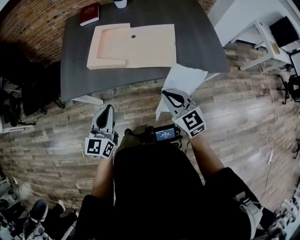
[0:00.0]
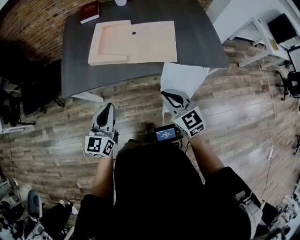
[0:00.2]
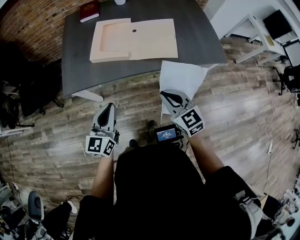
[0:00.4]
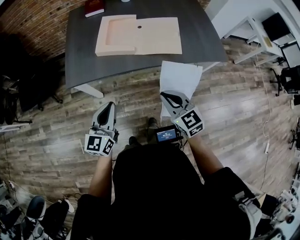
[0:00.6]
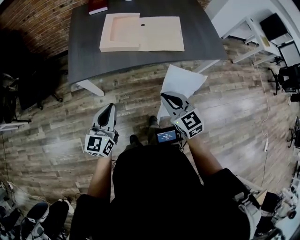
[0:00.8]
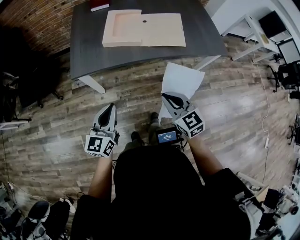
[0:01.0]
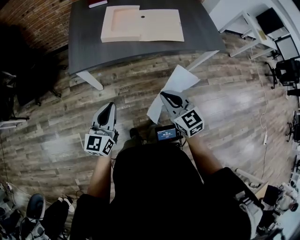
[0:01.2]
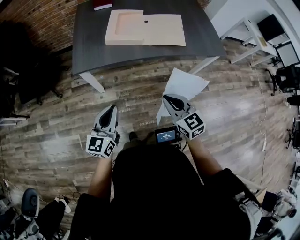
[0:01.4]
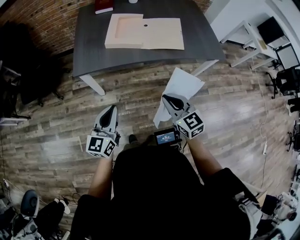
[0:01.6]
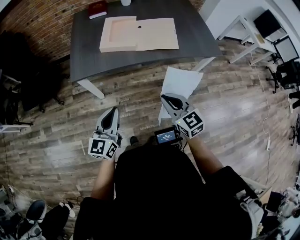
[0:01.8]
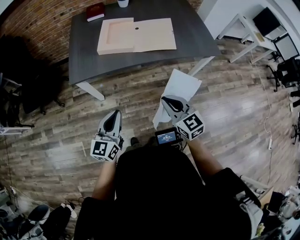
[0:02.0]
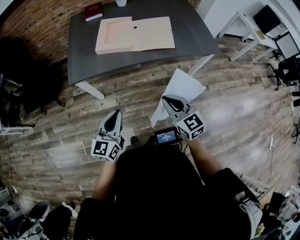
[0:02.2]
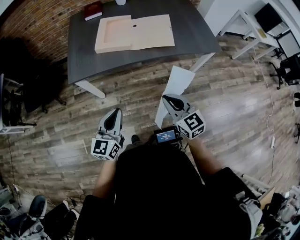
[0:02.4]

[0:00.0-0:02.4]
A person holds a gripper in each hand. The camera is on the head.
0:00.0 to 0:01.2: Both grippers travel together backward and to the left, some 25 cm.
0:01.2 to 0:02.4: The grippers both shift to the right by roughly 10 cm.

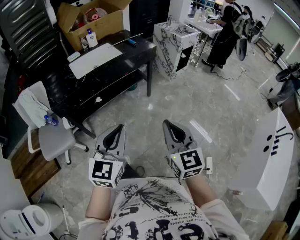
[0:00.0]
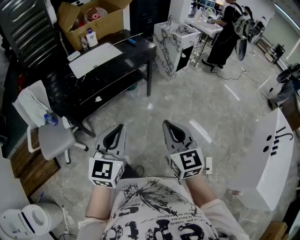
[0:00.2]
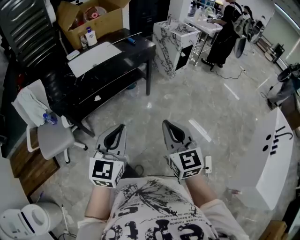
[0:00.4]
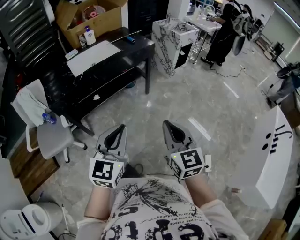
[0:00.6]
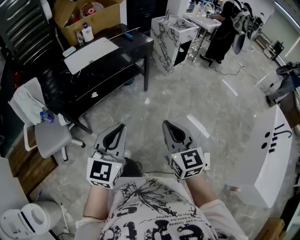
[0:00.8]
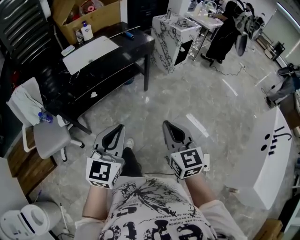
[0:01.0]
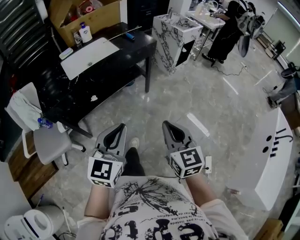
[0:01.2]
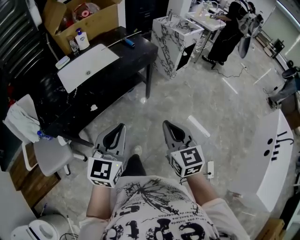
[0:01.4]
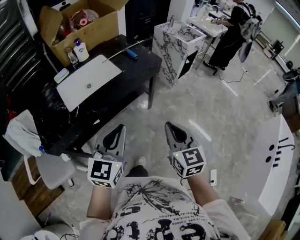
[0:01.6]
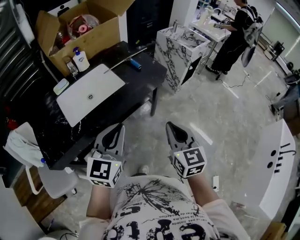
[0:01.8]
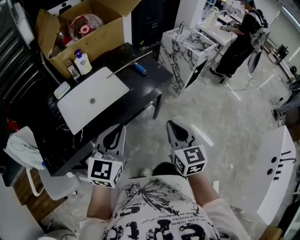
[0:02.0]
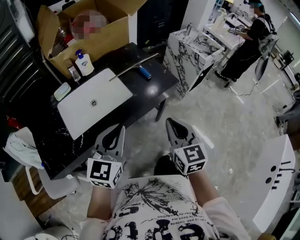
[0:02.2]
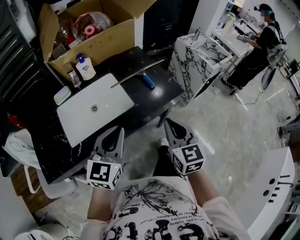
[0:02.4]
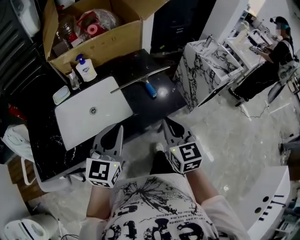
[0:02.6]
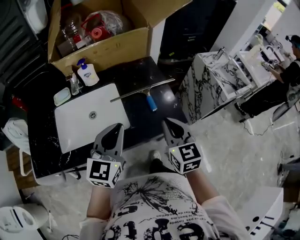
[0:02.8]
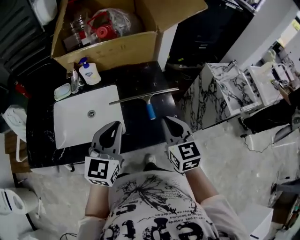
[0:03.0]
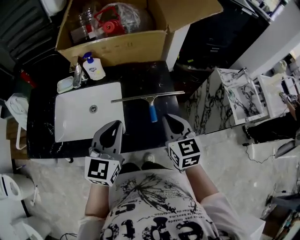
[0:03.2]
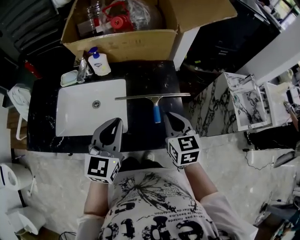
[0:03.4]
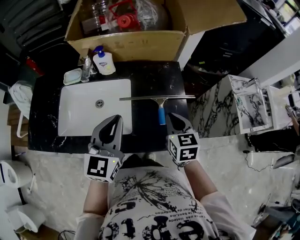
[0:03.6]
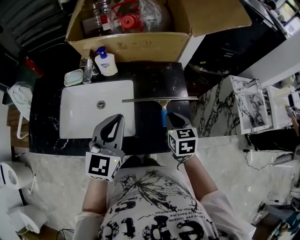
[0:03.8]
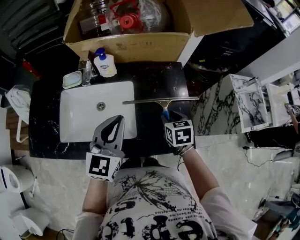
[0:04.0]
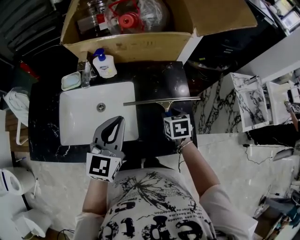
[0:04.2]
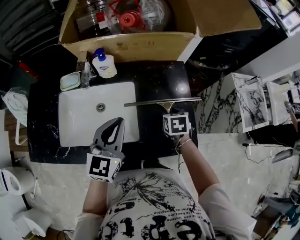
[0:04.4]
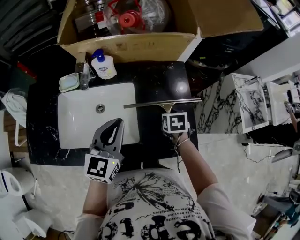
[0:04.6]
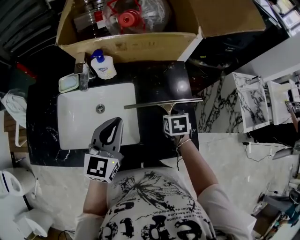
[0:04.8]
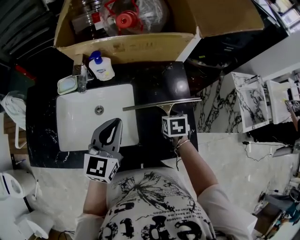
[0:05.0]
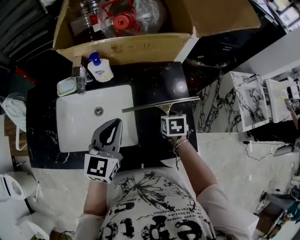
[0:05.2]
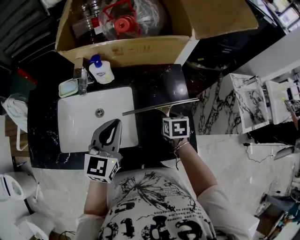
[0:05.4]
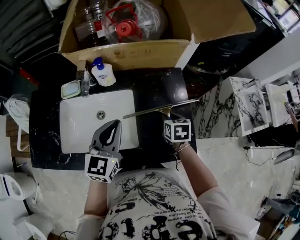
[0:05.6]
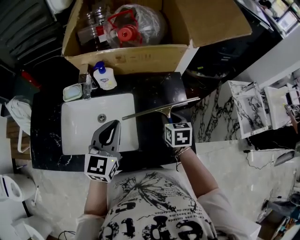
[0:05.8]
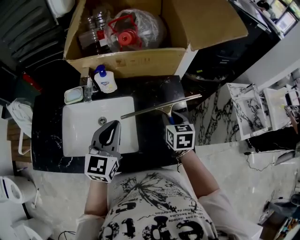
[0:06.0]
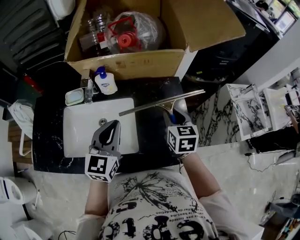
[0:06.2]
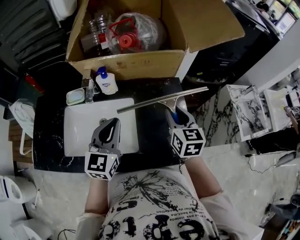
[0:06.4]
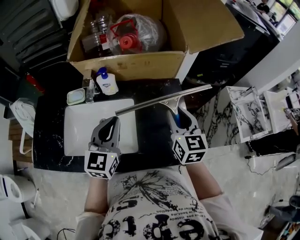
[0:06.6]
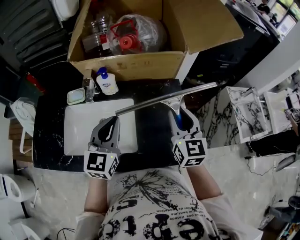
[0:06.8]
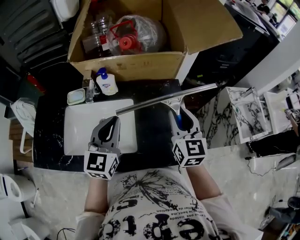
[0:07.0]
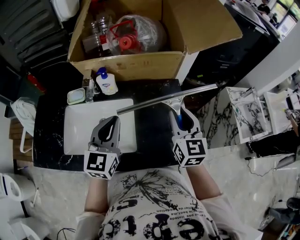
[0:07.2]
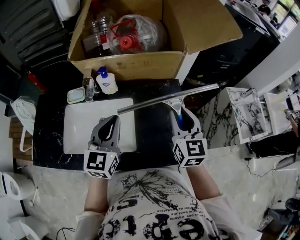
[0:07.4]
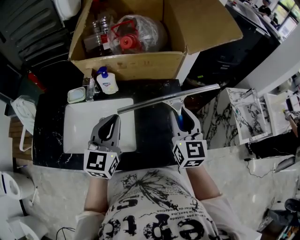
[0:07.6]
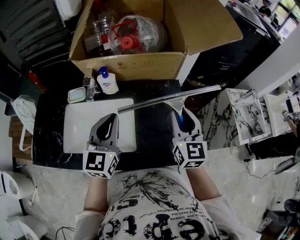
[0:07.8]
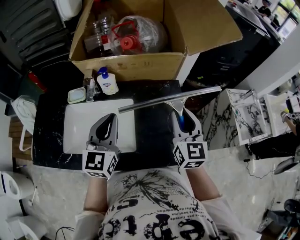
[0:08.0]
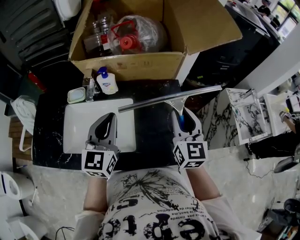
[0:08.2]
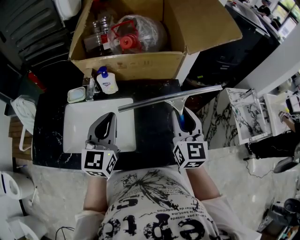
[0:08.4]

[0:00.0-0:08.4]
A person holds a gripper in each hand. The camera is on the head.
0:00.0 to 0:01.4: Both grippers move forward, approximately 20 cm.
0:01.4 to 0:02.8: Both grippers are carried forward, some 50 cm. The right gripper rotates roughly 20 degrees. The left gripper swivels roughly 20 degrees.
0:02.8 to 0:04.2: The right gripper shifts roughly 25 cm forward and downward, tips its fingers downward by some 40 degrees, and opens its fingers, while the left gripper moves forward, about 10 cm.
0:04.2 to 0:05.6: The grippers make only small movements.
0:05.6 to 0:07.0: The left gripper is displaced upward by some 5 cm, while the right gripper shifts approximately 20 cm upward, and tips its fingers upward by about 40 degrees.
0:07.0 to 0:08.4: There are only small adjustments of the grippers.

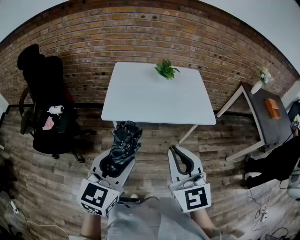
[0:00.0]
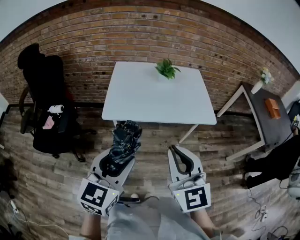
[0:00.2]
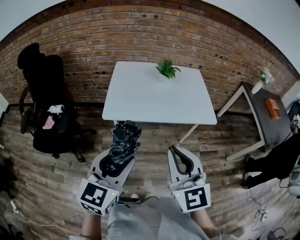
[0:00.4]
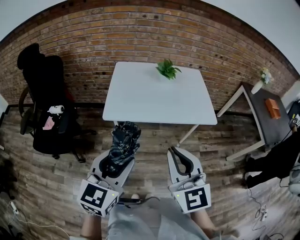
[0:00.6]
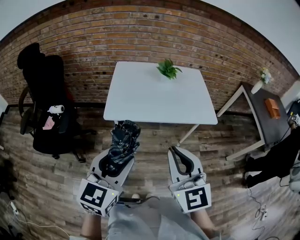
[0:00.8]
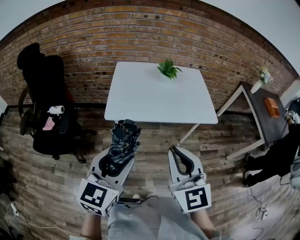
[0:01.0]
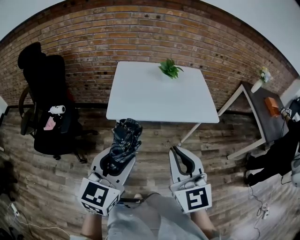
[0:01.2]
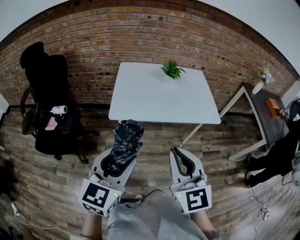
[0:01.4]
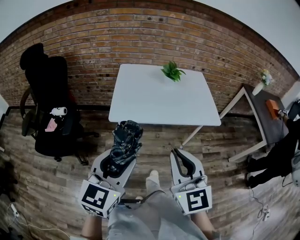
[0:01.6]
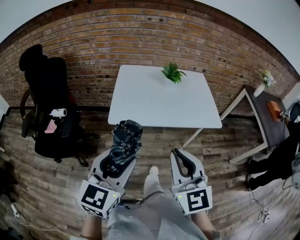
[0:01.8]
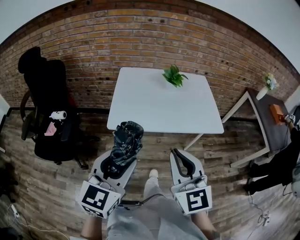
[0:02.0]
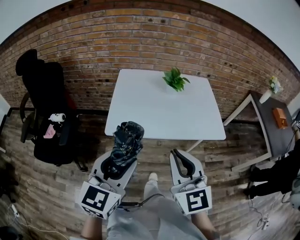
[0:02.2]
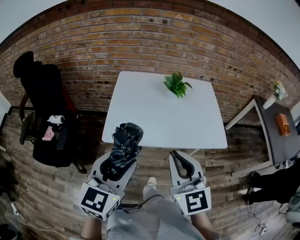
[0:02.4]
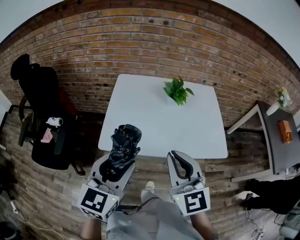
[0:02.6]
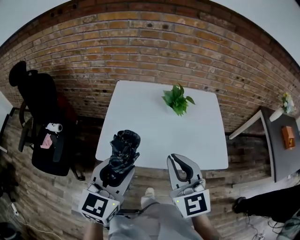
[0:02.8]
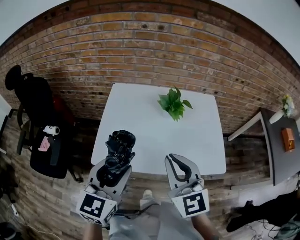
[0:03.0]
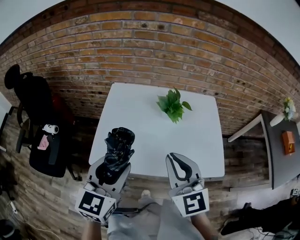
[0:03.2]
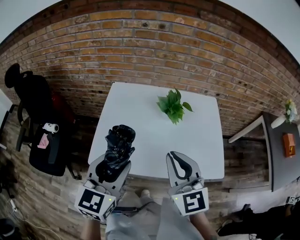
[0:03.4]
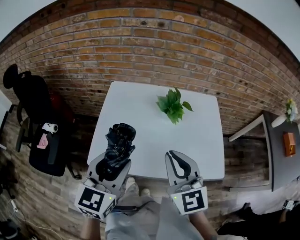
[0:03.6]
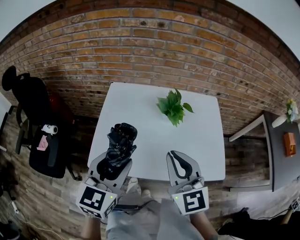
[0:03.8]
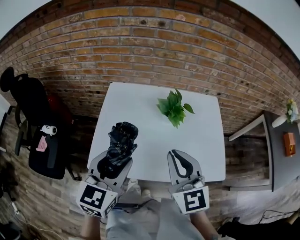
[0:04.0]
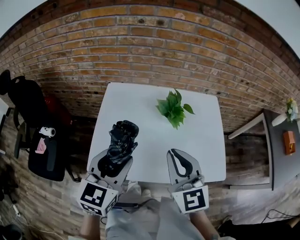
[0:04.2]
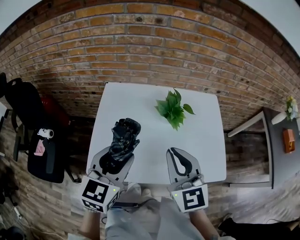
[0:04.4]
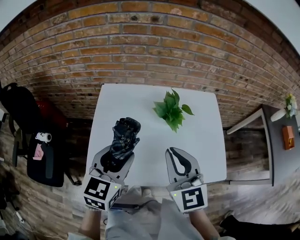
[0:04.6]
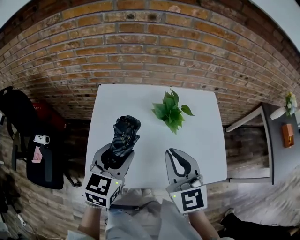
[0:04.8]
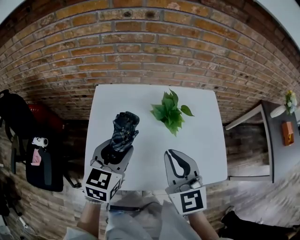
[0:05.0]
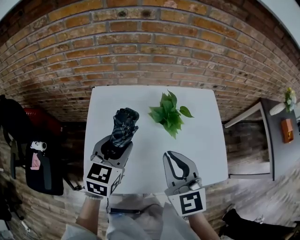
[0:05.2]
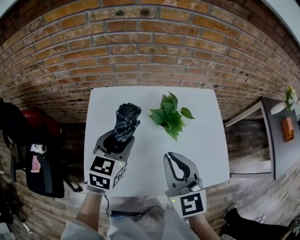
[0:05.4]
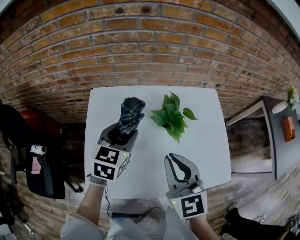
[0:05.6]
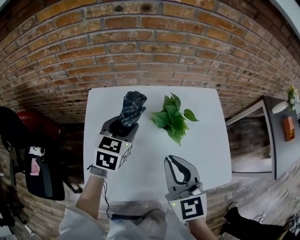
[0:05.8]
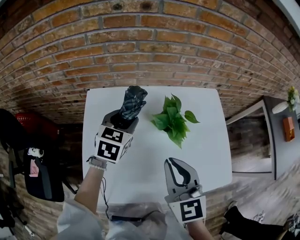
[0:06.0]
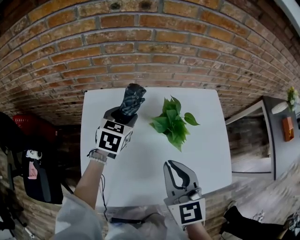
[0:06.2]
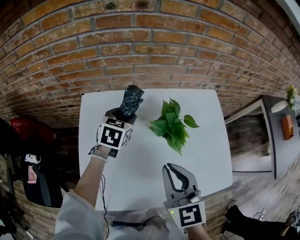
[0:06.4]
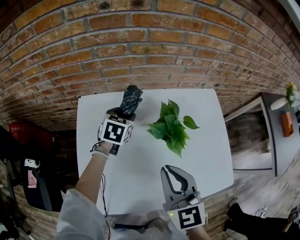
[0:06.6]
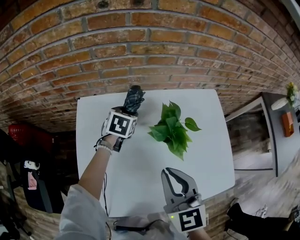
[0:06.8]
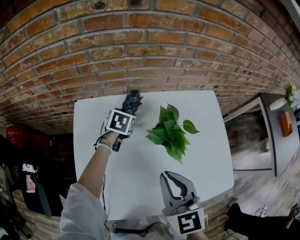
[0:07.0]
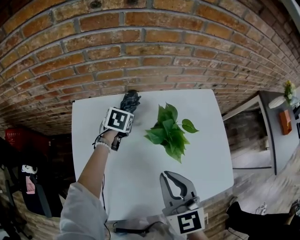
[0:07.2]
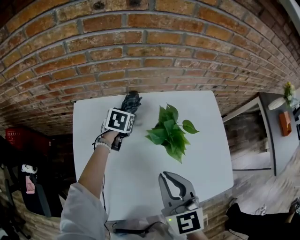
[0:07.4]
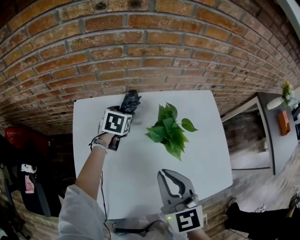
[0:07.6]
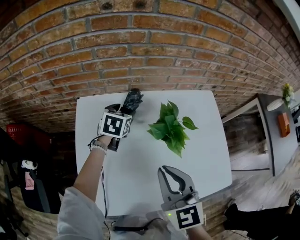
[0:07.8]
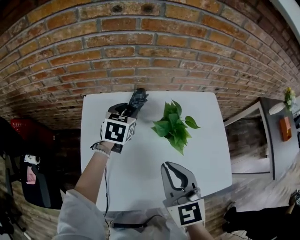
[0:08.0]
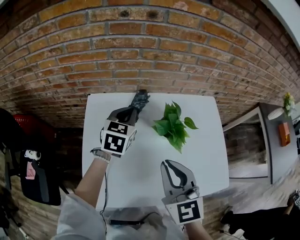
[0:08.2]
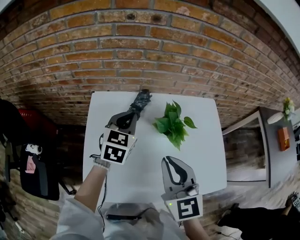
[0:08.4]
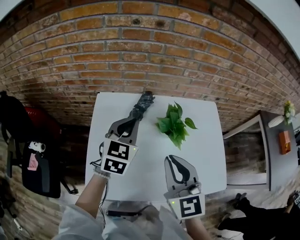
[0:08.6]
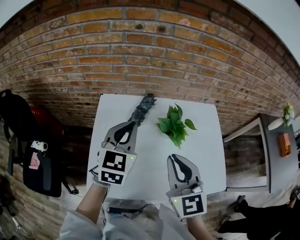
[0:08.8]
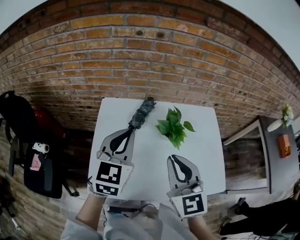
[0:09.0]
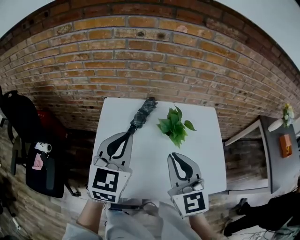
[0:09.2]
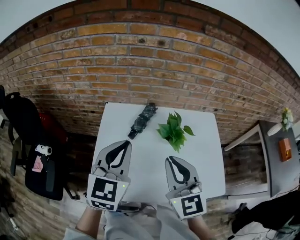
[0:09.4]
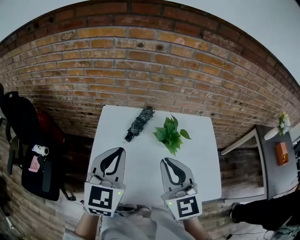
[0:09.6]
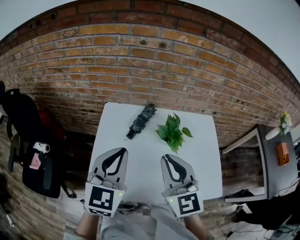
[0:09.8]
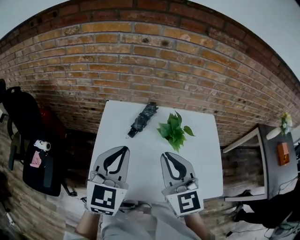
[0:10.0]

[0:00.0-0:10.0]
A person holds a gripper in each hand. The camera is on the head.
0:00.0 to 0:01.4: Both grippers move to the left, roughly 5 cm.
0:01.4 to 0:02.8: Both grippers move forward, roughly 30 cm.
0:02.8 to 0:04.2: The grippers both shift forward by approximately 15 cm.
0:04.2 to 0:05.8: The left gripper travels forward and downward by about 30 cm, while the right gripper moves forward and downward, some 15 cm.
0:05.8 to 0:07.2: The right gripper changes place by roughly 5 cm; the left gripper moves downward and forward, some 25 cm, and turns by some 30 degrees.
0:07.2 to 0:08.6: The right gripper travels upward and backward by some 10 cm. The left gripper is displaced upward and backward by some 30 cm, tips its fingers upward by some 30 degrees, and closes up.
0:08.6 to 0:10.0: The left gripper moves backward and upward, about 20 cm, while the right gripper moves upward, about 5 cm.

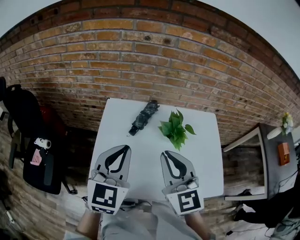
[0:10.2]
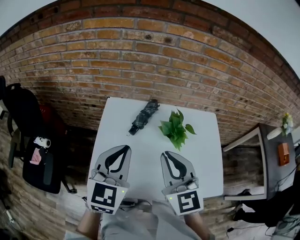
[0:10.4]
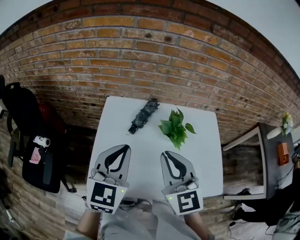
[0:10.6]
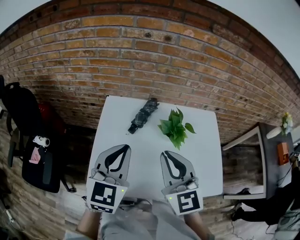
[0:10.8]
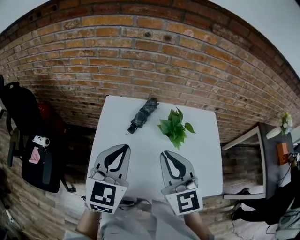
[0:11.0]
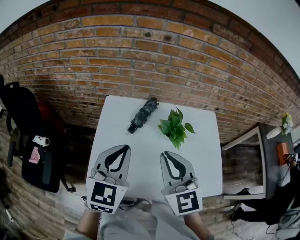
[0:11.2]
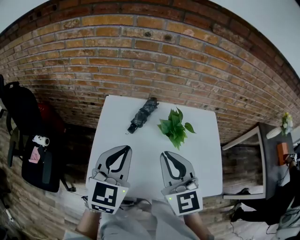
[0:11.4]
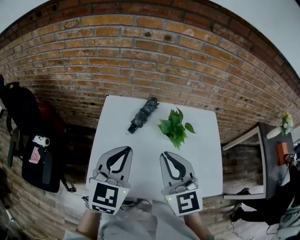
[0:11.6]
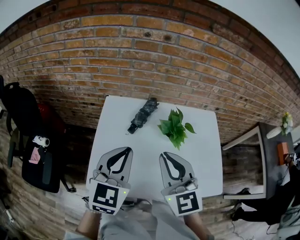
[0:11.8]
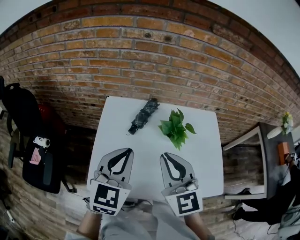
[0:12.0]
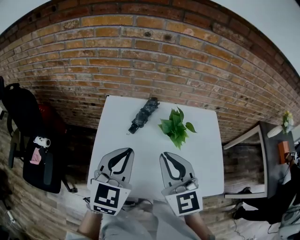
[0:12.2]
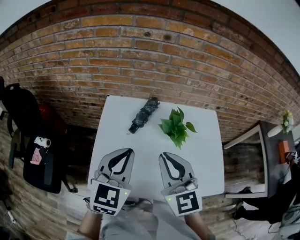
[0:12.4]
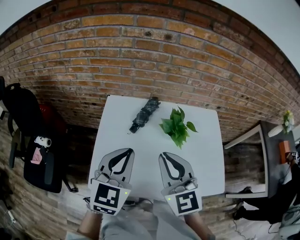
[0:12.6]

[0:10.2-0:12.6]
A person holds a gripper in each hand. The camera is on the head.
0:10.2 to 0:11.4: The grippers stay close to where they were, moving slightly.
0:11.4 to 0:12.6: The two grippers keep their place.
